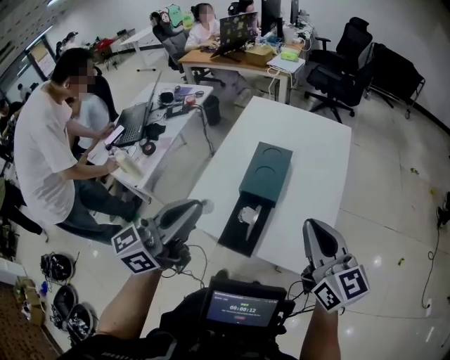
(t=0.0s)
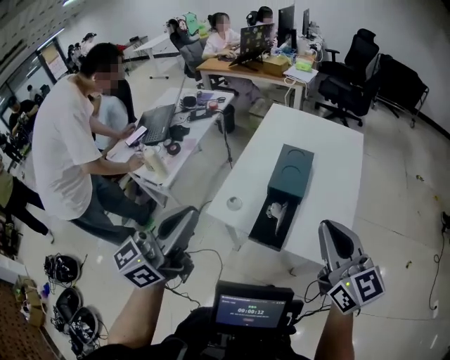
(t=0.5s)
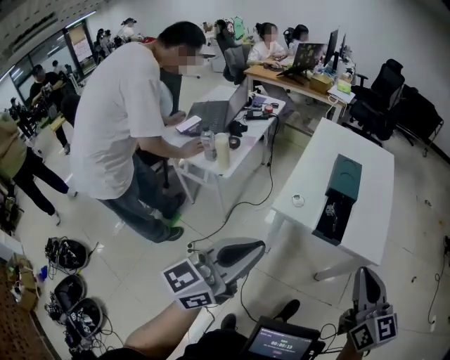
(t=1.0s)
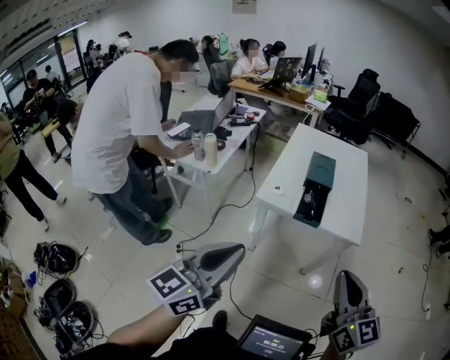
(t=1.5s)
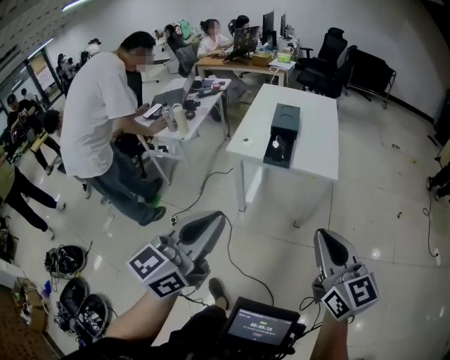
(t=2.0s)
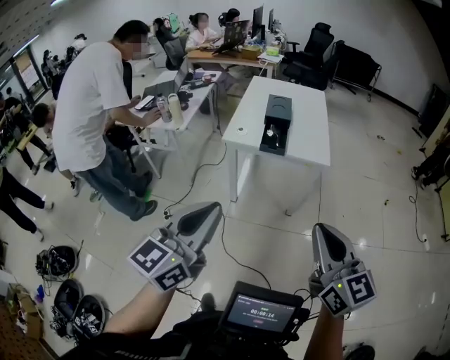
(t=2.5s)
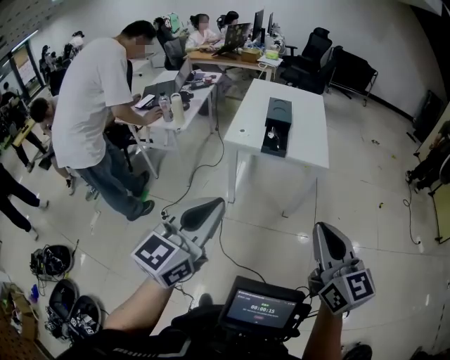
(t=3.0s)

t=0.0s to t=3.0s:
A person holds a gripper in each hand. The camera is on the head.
t=0.0s to t=1.5s: The two grippers travel together, backward and to the left, some 60 cm.
t=1.5s to t=3.0s: The two grippers go roughly 25 cm backward.

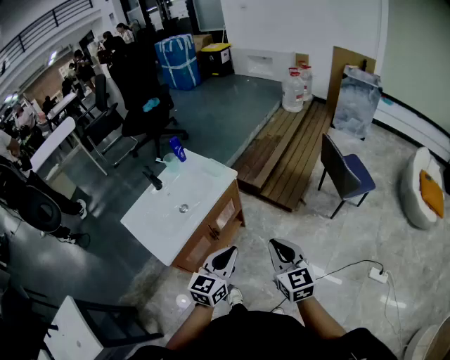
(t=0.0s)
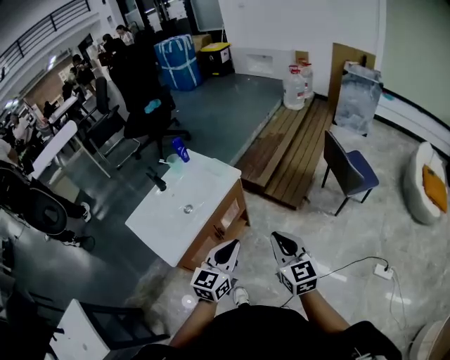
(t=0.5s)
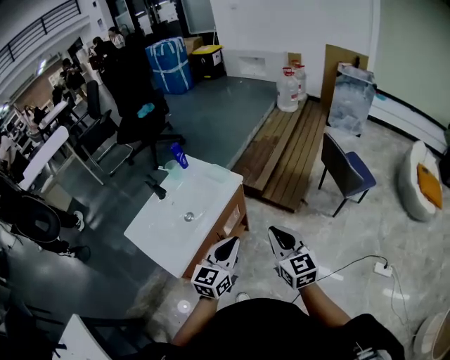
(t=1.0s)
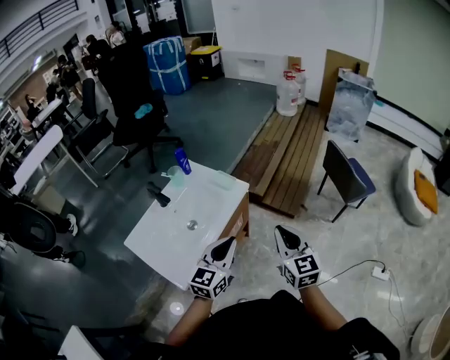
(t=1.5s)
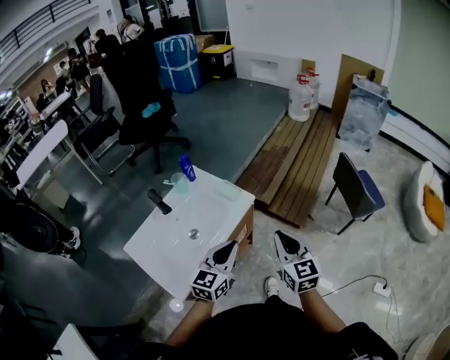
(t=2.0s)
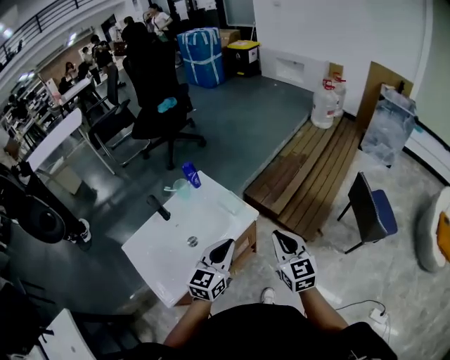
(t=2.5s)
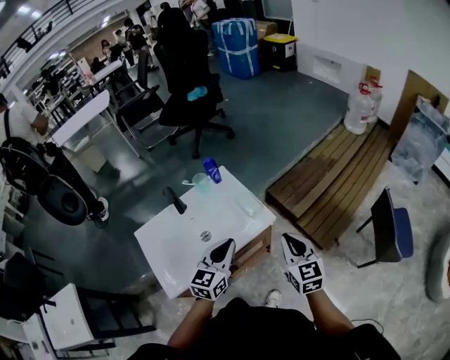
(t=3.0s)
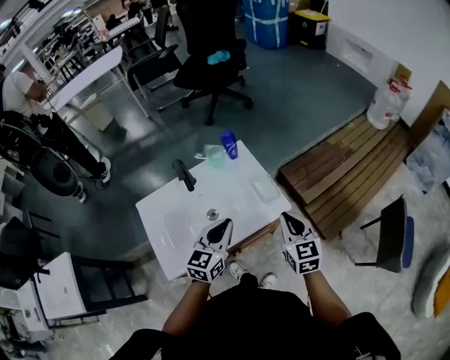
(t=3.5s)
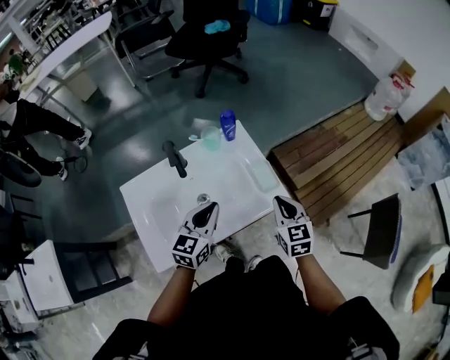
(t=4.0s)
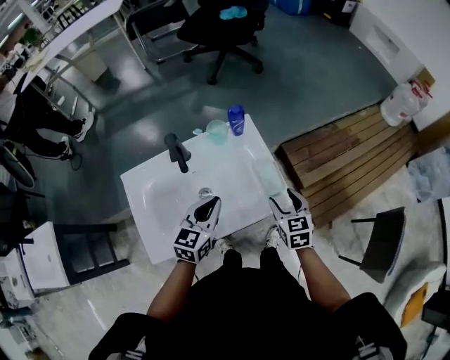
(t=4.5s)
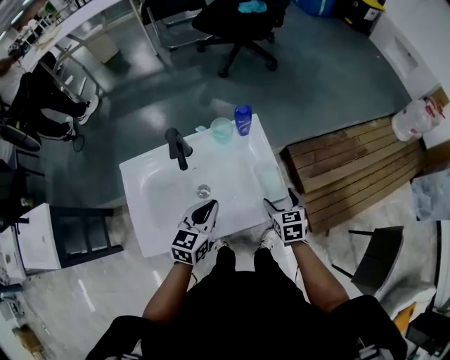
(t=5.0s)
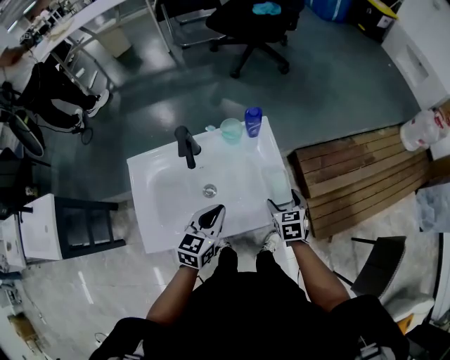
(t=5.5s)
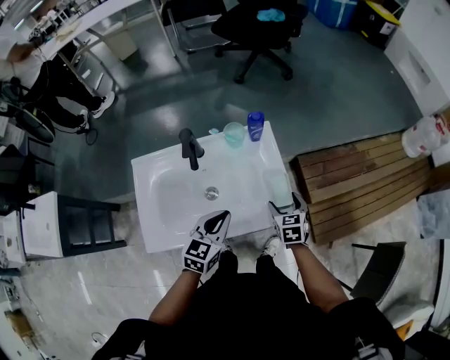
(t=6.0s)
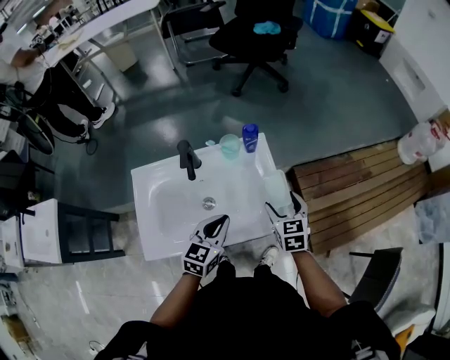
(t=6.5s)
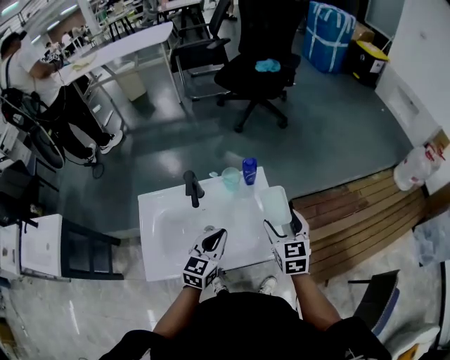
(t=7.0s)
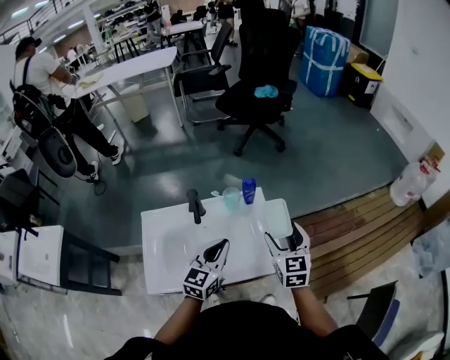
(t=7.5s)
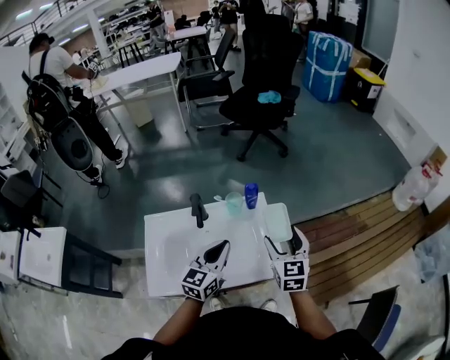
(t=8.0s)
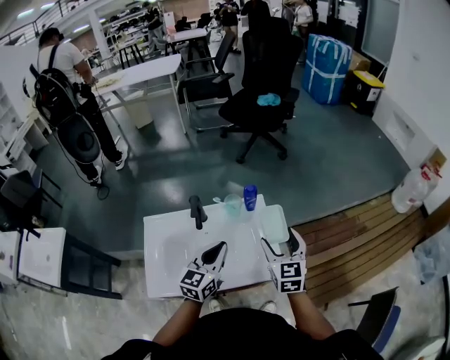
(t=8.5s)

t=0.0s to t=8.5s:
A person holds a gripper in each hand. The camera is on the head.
t=0.0s to t=2.0s: Both grippers travel together forward and to the left, roughly 20 cm.
t=2.0s to t=4.0s: The right gripper shifts by roughly 30 cm, and swivels approximately 30 degrees. The left gripper moves some 20 cm, and swivels roughly 30 degrees.
t=4.0s to t=6.5s: The right gripper travels forward by about 10 cm, moves about 15 cm downward and comes back, and opens its fingers.
t=6.5s to t=8.5s: Both grippers move upward, some 10 cm.

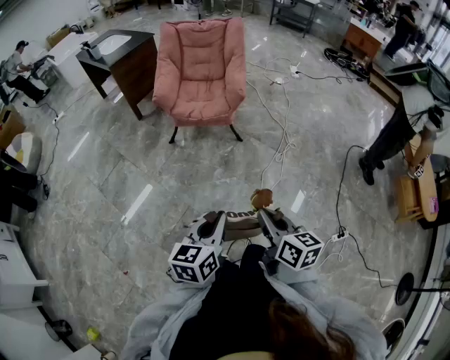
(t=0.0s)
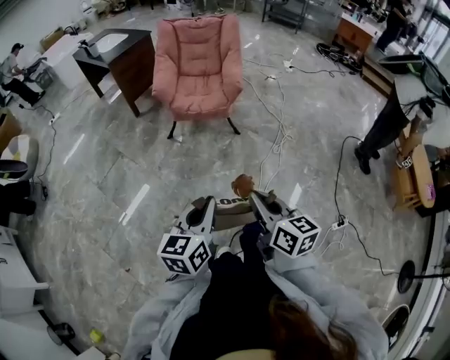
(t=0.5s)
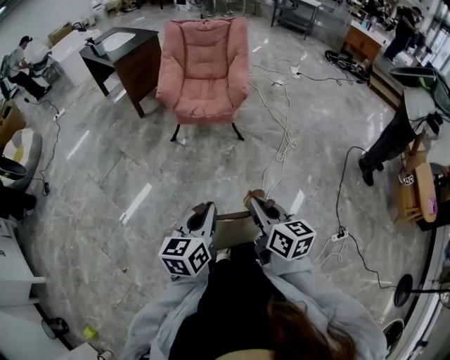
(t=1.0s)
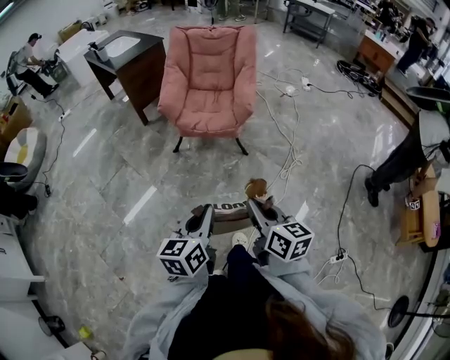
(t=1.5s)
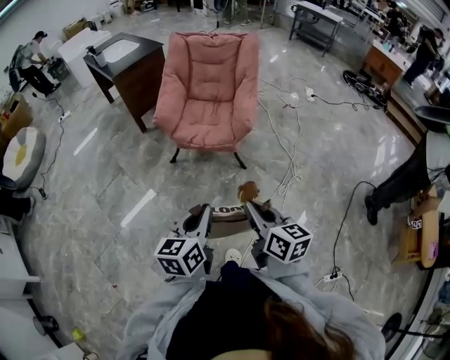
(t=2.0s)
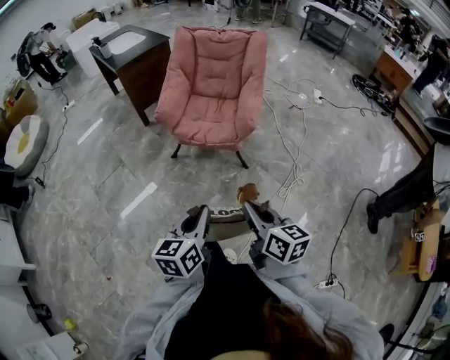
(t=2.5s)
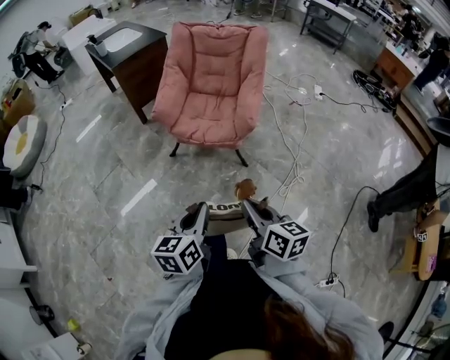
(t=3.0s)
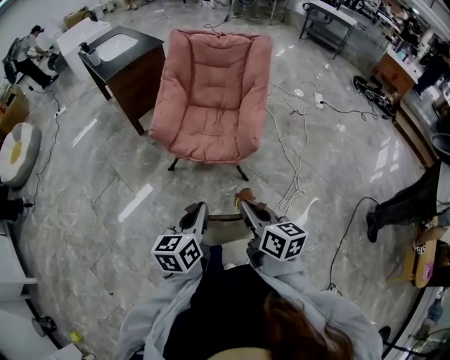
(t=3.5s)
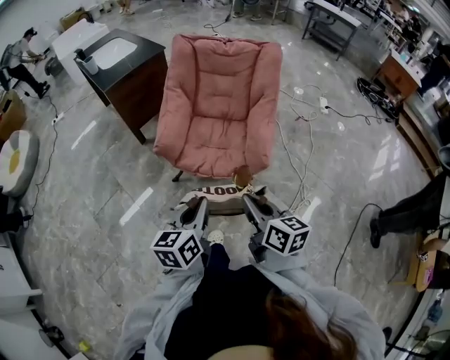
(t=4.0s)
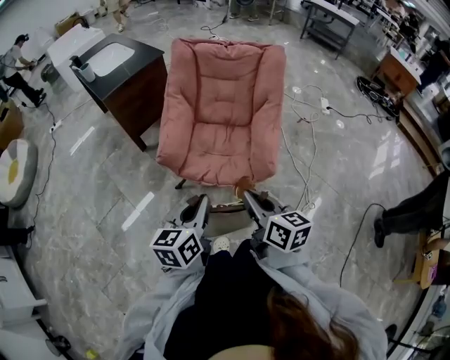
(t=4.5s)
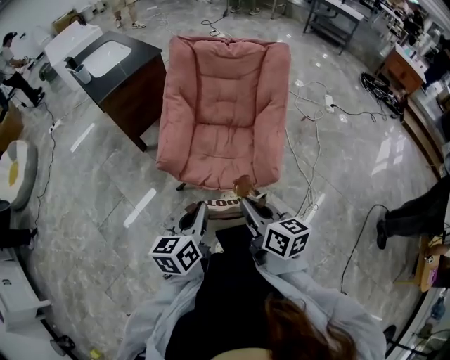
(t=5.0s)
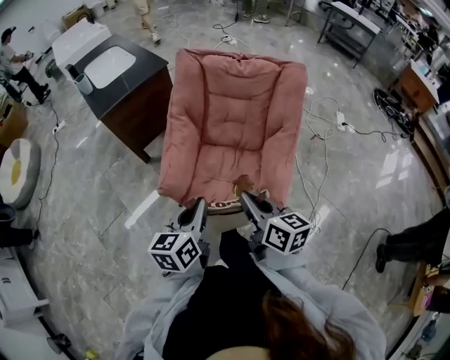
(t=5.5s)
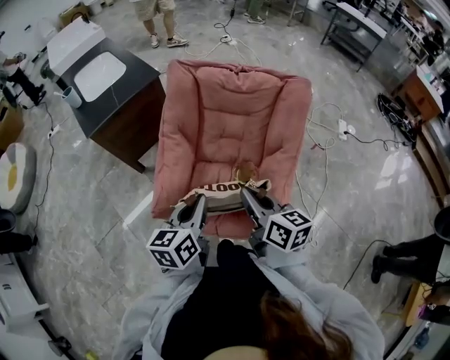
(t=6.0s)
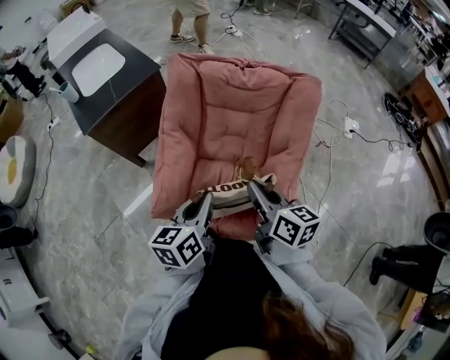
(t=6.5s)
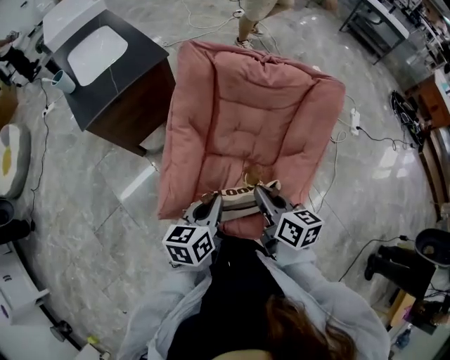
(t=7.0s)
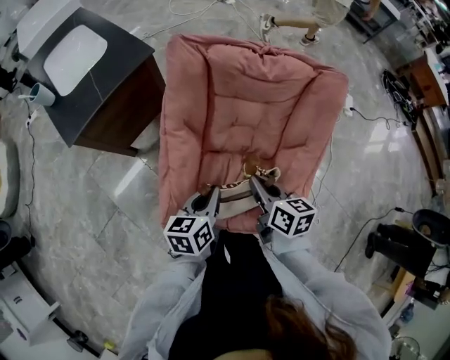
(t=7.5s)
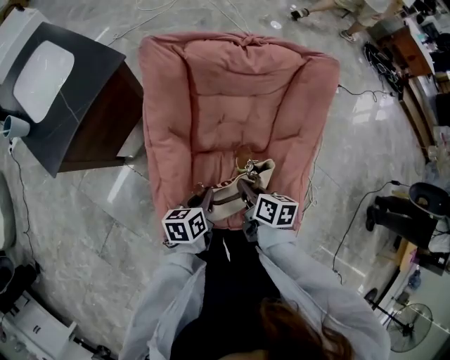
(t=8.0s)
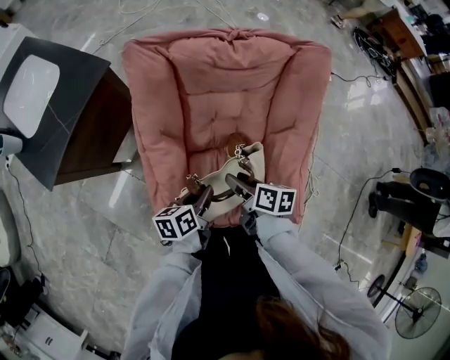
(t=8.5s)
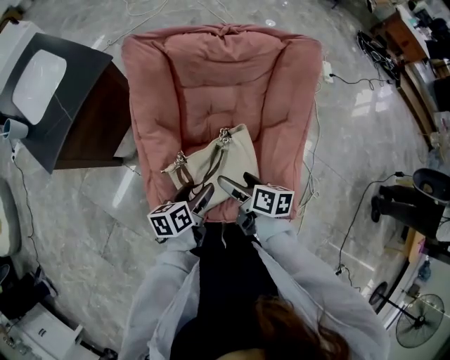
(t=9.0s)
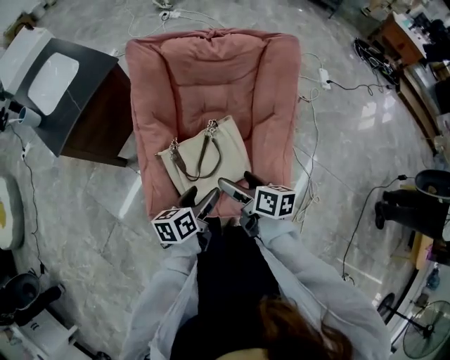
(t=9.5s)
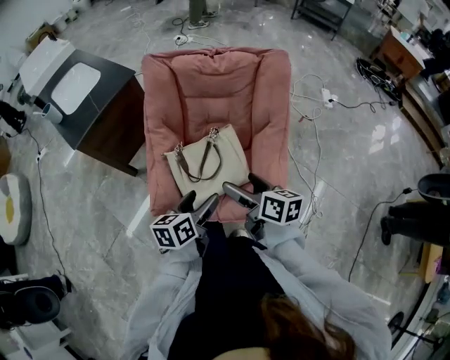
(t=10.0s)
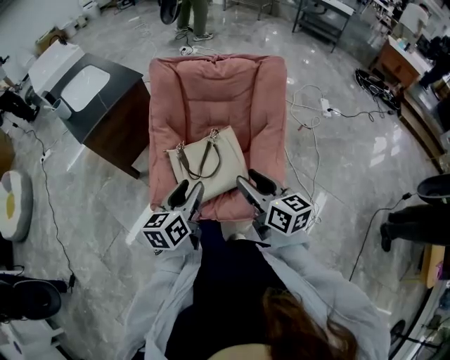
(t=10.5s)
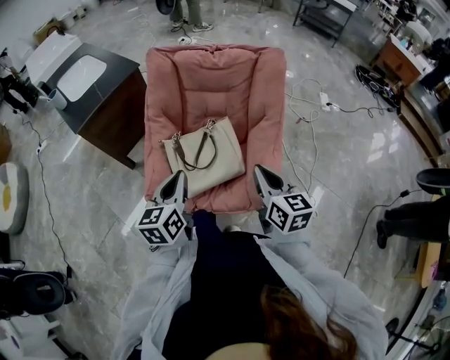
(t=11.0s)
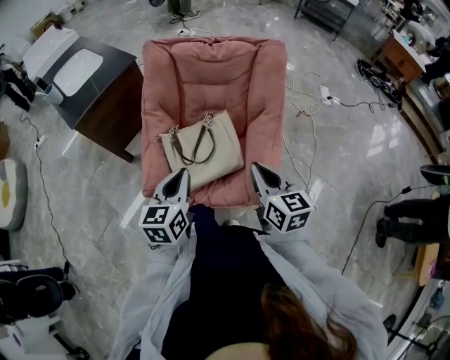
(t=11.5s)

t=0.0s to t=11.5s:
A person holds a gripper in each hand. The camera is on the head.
t=0.0s to t=2.0s: Both grippers travel together forward, about 20 cm.
t=2.0s to t=4.0s: Both grippers move forward, about 25 cm.
t=4.0s to t=6.0s: The grippers both shift forward by about 35 cm.
t=6.0s to t=7.5s: The grippers both shift forward and downward by some 15 cm.
t=7.5s to t=9.5s: The right gripper goes roughly 10 cm backward, travels downward and back again, about 10 cm each way, and opens, while the left gripper heads backward and to the right, covering approximately 10 cm, and opens its fingers.
t=9.5s to t=11.5s: The right gripper heads upward, backward and to the right, covering some 15 cm, swivels some 40 degrees, and closes its fingers, while the left gripper is displaced upward and backward by some 15 cm, turns by some 40 degrees, and closes its fingers.

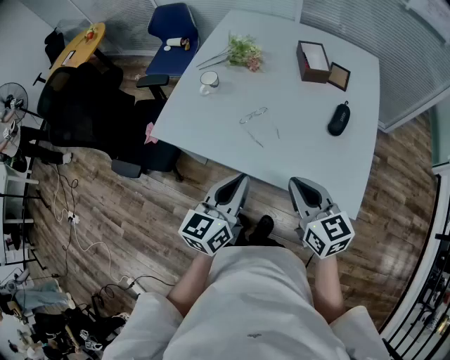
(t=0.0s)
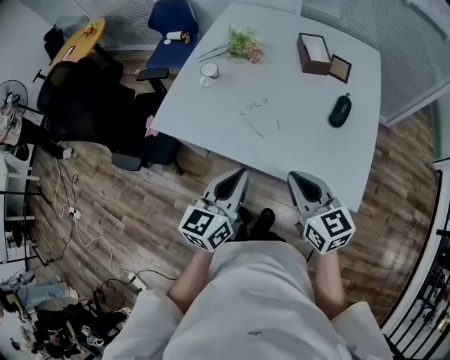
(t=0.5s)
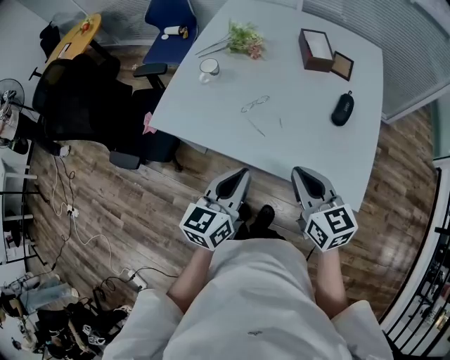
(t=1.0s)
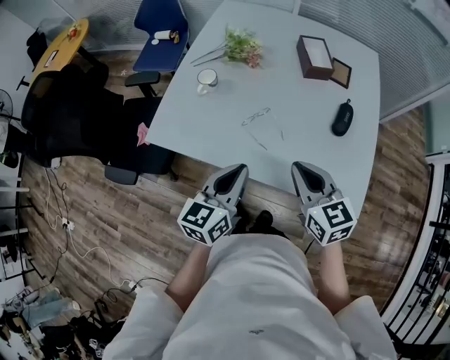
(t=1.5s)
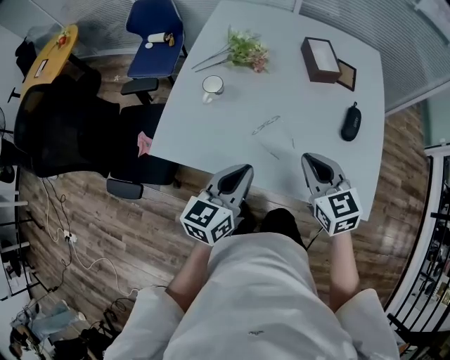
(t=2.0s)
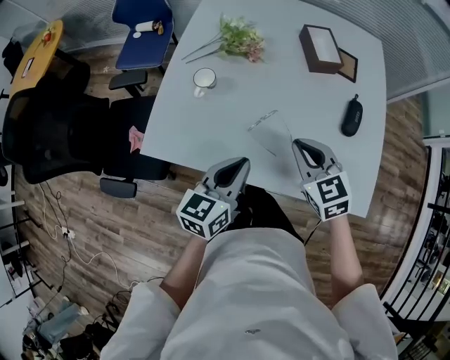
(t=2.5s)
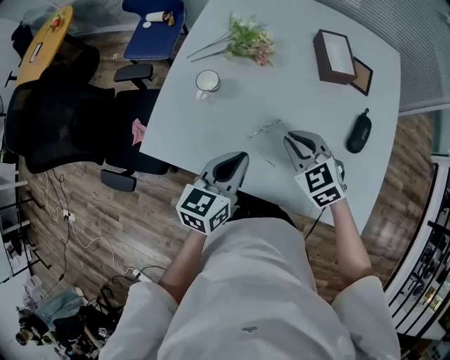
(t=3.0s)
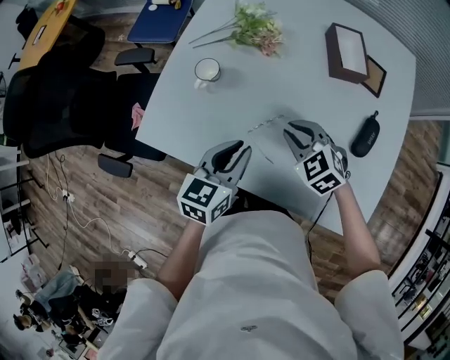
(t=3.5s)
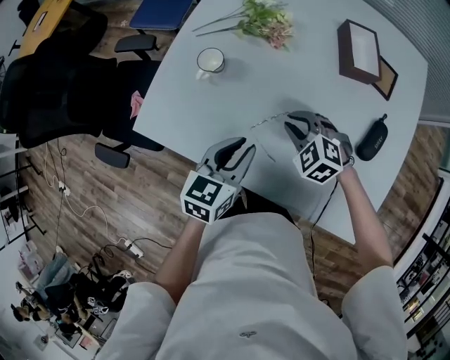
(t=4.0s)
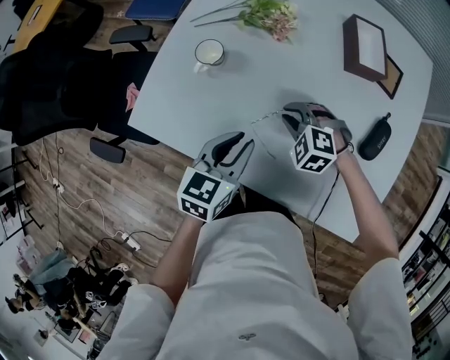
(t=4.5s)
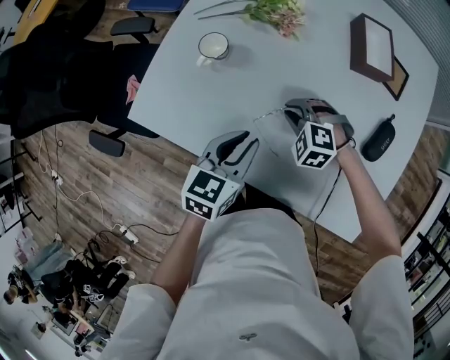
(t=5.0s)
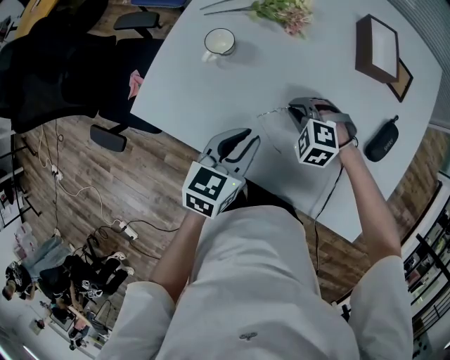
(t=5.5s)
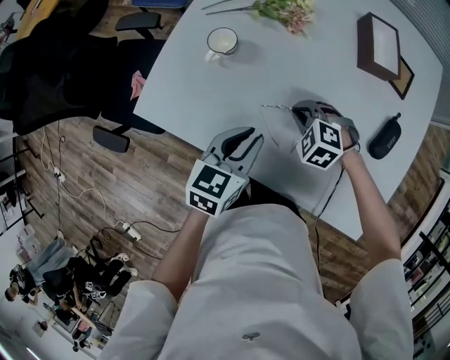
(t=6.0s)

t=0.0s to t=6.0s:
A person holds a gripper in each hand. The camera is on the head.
t=0.0s to t=2.0s: The right gripper is displaced forward by approximately 15 cm, while the left gripper moves forward and to the left, some 15 cm.
t=2.0s to t=4.0s: The left gripper travels forward and downward by roughly 15 cm. The right gripper shifts some 25 cm downward and forward, and turns by approximately 50 degrees.
t=4.0s to t=6.0s: The right gripper heads downward, covering some 5 cm.
